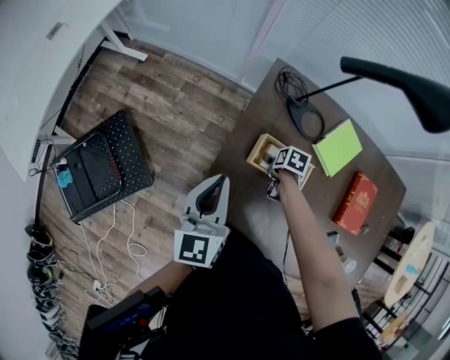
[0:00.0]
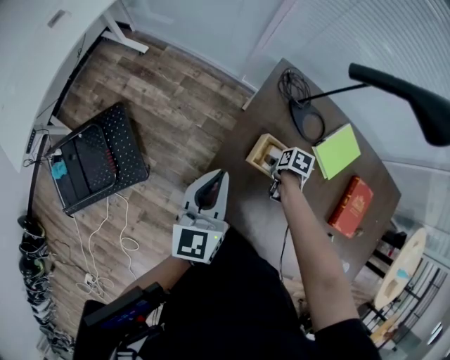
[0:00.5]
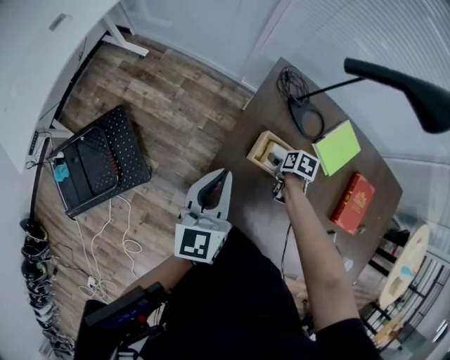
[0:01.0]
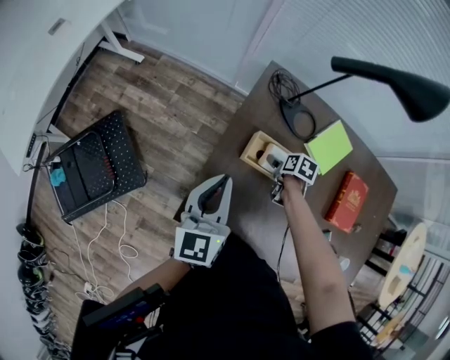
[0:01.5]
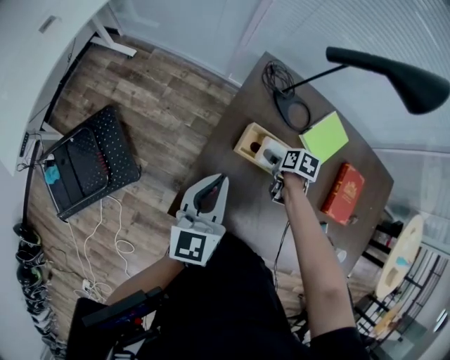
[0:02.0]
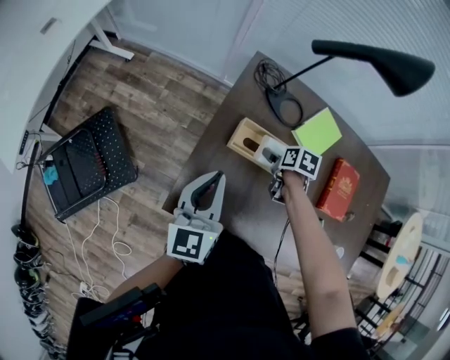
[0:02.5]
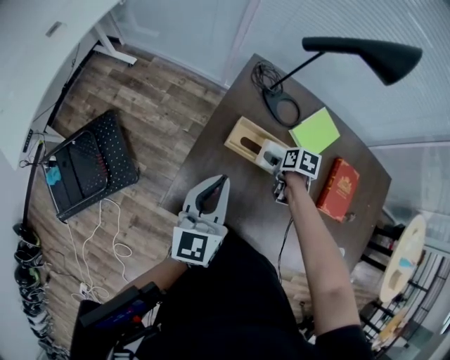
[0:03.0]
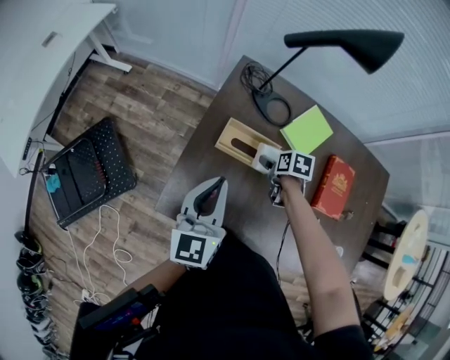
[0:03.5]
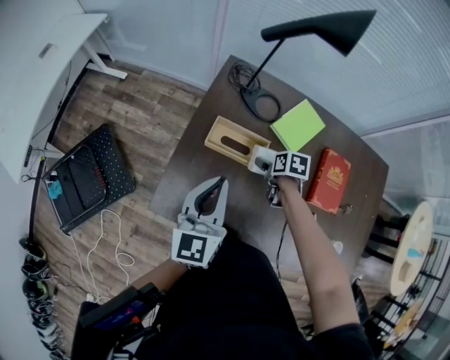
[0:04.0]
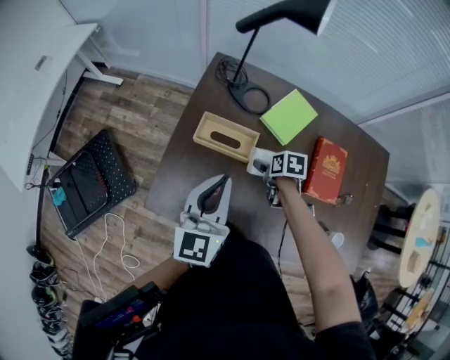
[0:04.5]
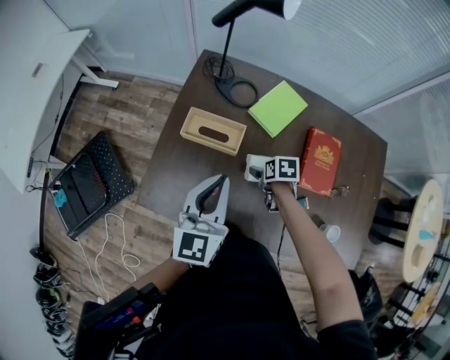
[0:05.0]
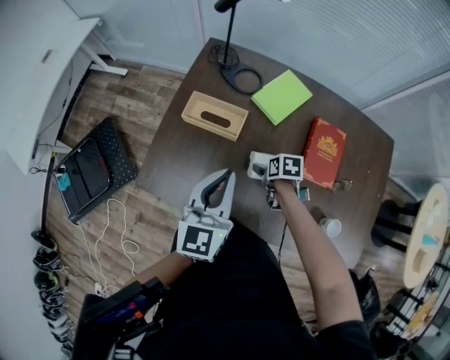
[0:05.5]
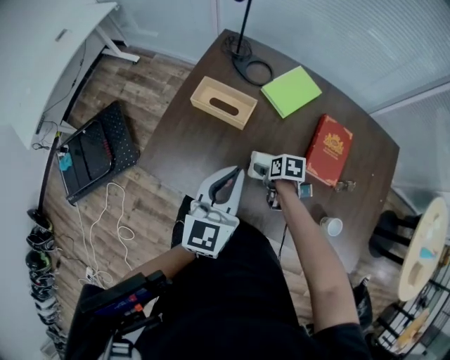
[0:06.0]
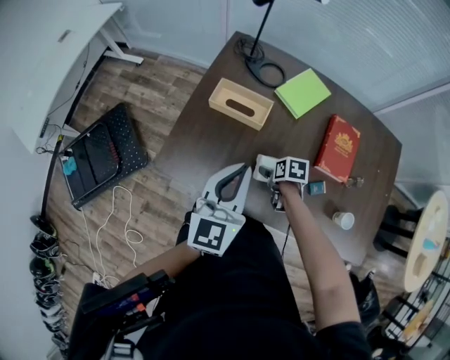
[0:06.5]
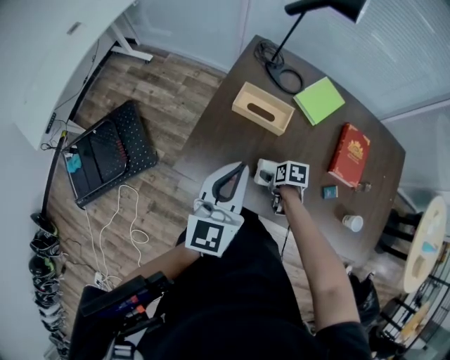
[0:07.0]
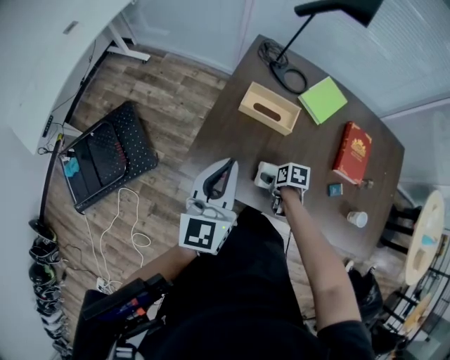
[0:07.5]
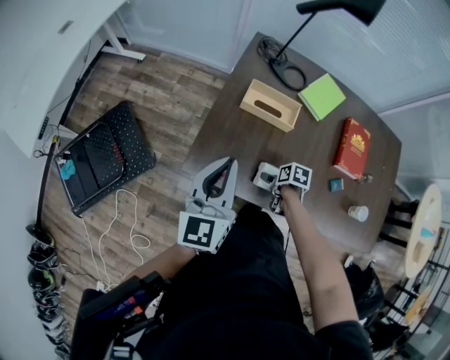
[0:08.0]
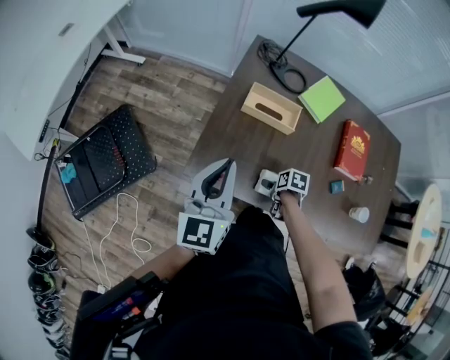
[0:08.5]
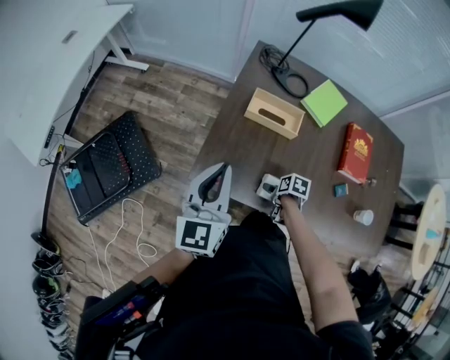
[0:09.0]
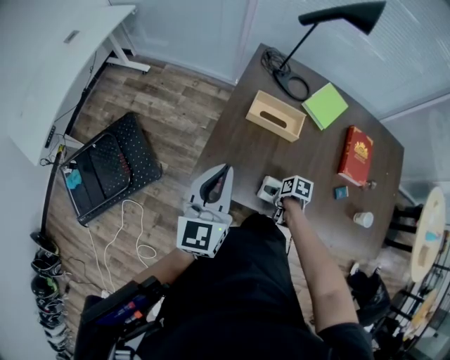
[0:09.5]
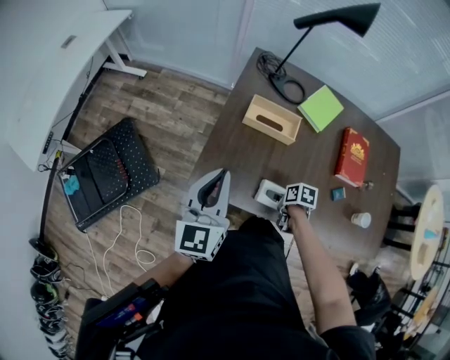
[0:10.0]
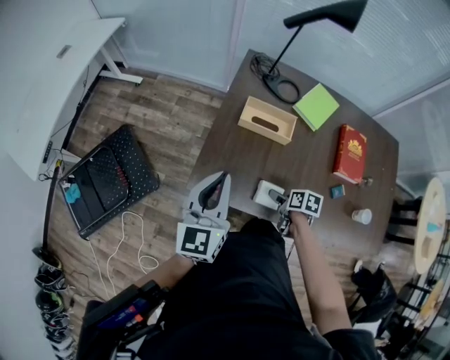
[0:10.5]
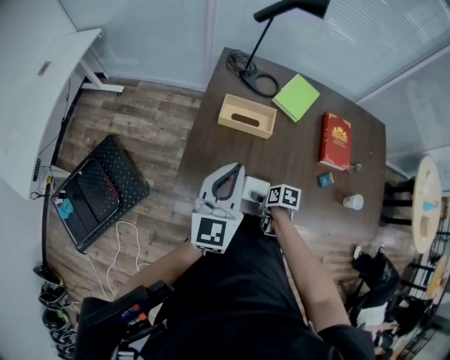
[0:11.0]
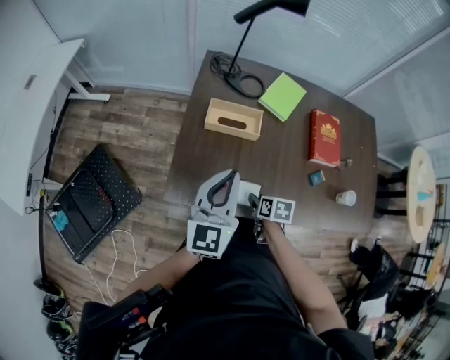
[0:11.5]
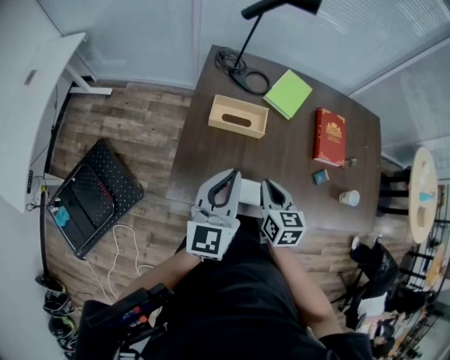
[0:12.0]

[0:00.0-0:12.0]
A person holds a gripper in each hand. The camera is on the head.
0:00.0 to 0:02.0: The right gripper moves upward, roughly 5 cm.
0:02.0 to 0:04.0: Both grippers travel together to the right and backward, about 10 cm.
0:04.0 to 0:06.0: The right gripper heads backward, covering about 15 cm, while the left gripper shifts approximately 20 cm backward and to the right.
0:06.0 to 0:08.0: Both grippers travel together to the left, about 20 cm.
0:08.0 to 0:10.0: The grippers move only a little.
0:10.0 to 0:12.0: The left gripper moves roughly 10 cm; the right gripper heads upward, covering about 20 cm, points its fingers some 40 degrees further upward, and closes its fingers.

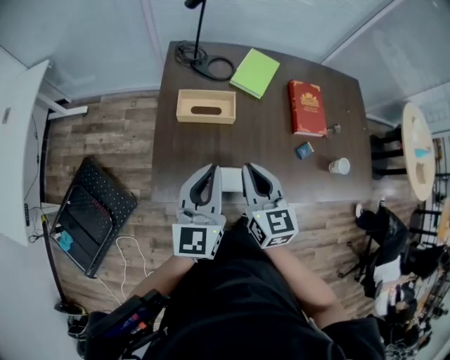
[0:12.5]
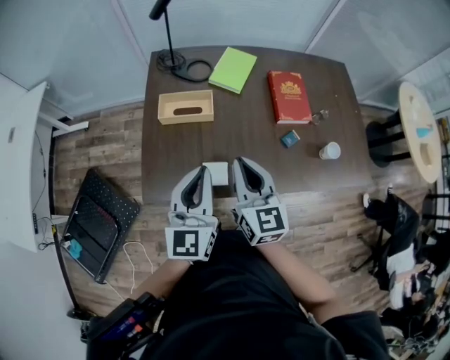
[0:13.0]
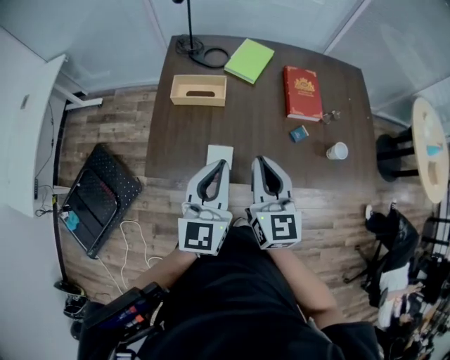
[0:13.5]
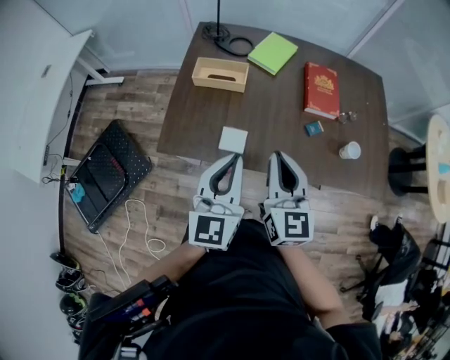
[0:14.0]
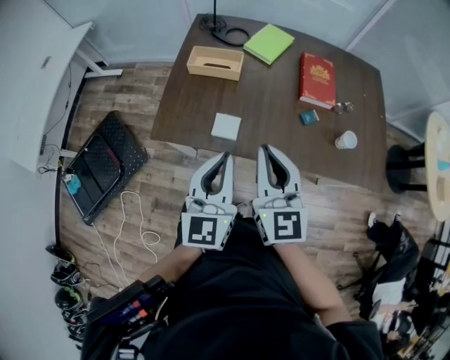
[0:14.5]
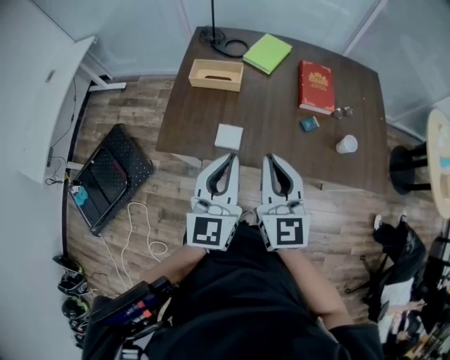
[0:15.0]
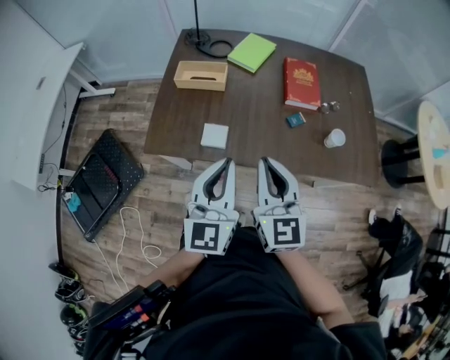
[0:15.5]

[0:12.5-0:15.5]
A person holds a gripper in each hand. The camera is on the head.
0:12.5 to 0:14.0: The left gripper shifts some 15 cm backward and to the right; the right gripper goes about 15 cm backward, to the right and upward.
0:14.0 to 0:15.5: The left gripper shifts by some 5 cm. Meanwhile the right gripper travels backward by roughly 5 cm.

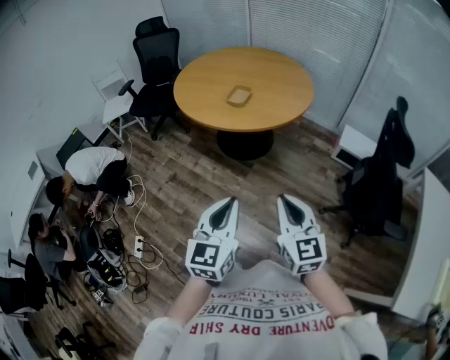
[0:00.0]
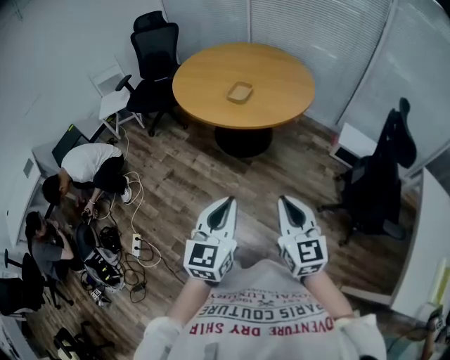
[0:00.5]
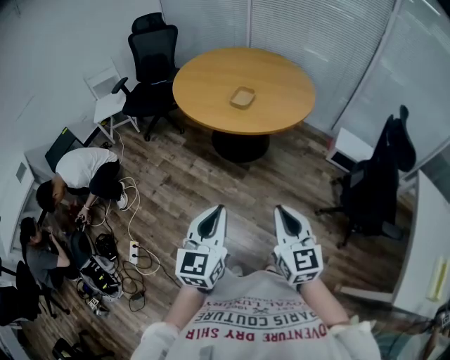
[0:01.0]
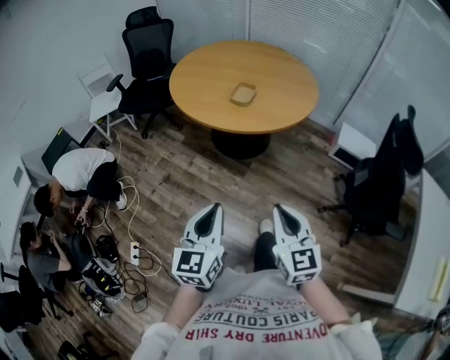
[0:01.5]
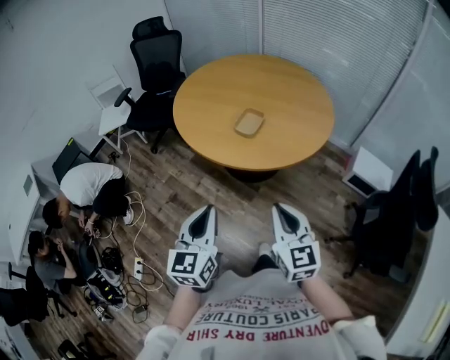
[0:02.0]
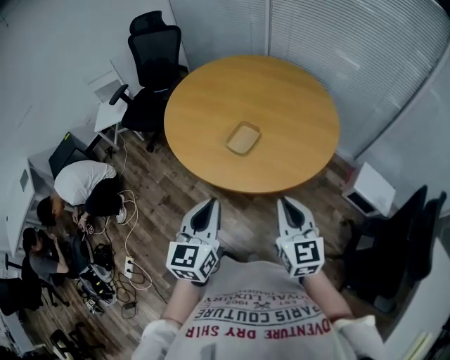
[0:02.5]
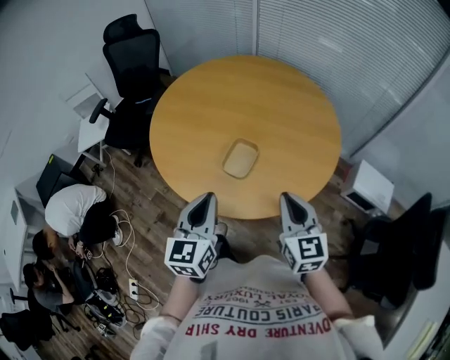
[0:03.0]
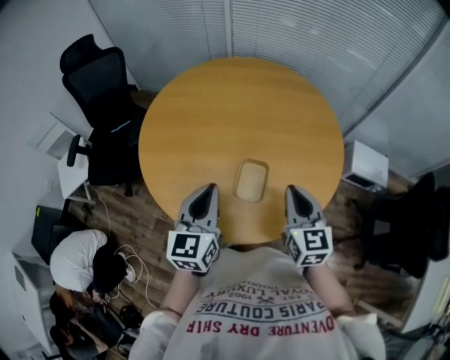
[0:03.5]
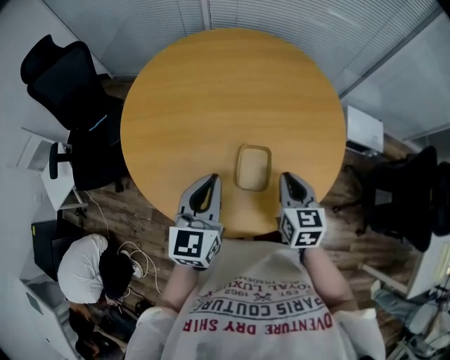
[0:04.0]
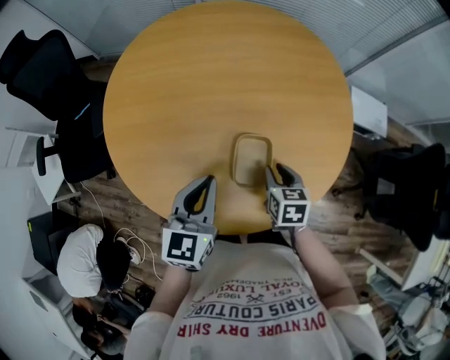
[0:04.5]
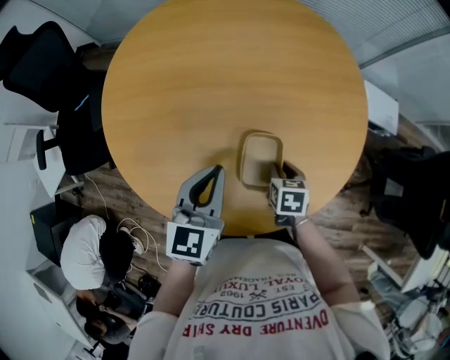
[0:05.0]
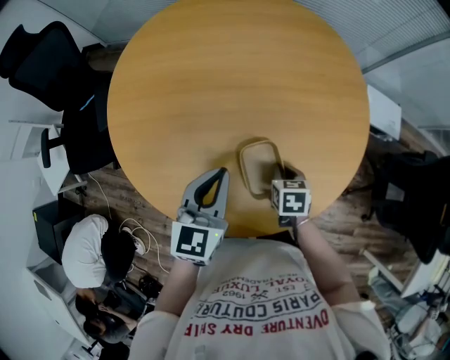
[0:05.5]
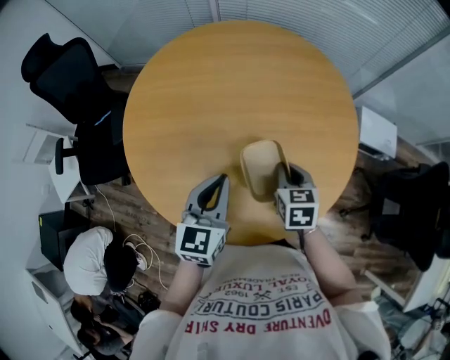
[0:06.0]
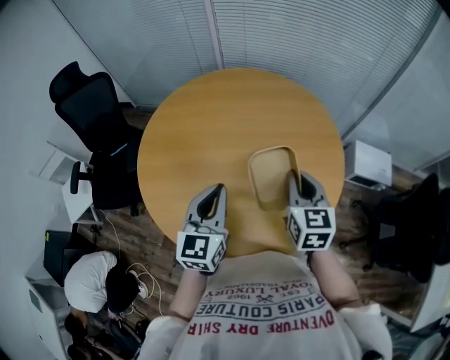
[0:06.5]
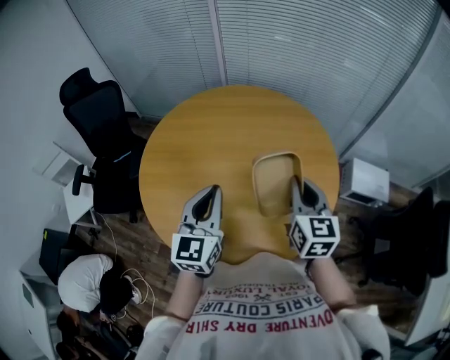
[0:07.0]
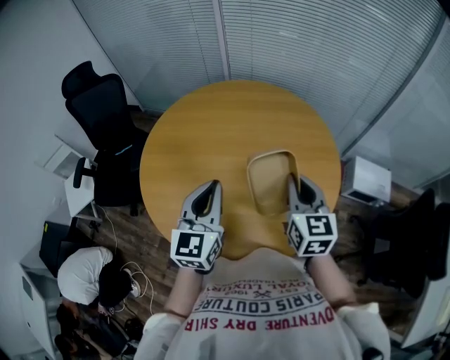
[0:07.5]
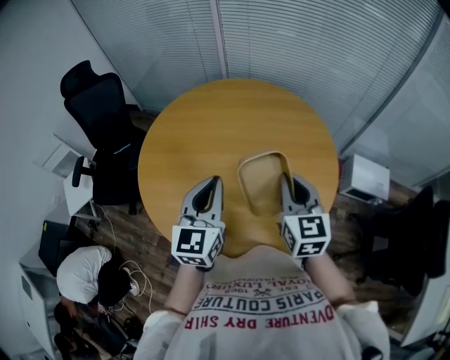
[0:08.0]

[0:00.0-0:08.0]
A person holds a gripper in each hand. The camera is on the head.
0:00.0 to 0:02.0: The right gripper heads forward, covering some 20 cm, while the left gripper moves forward and to the left, roughly 20 cm.
0:02.0 to 0:04.0: The left gripper changes place by about 40 cm, and changes its angle by about 30 degrees. Meanwhile the right gripper moves roughly 40 cm, and changes its angle by some 40 degrees.
0:04.0 to 0:06.0: The left gripper shifts by about 5 cm. The right gripper shifts some 5 cm forward, moves about 20 cm downward and comes back, and opens, then closes again.
0:06.0 to 0:08.0: The left gripper moves upward, approximately 10 cm. The right gripper moves upward, some 20 cm, and tips its fingers upward by roughly 30 degrees.

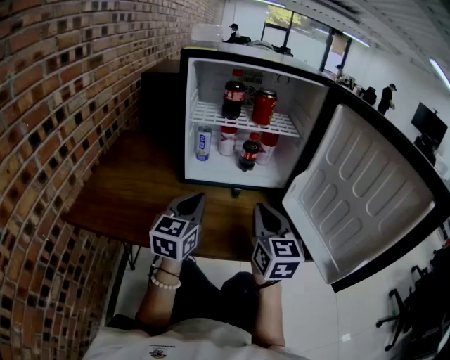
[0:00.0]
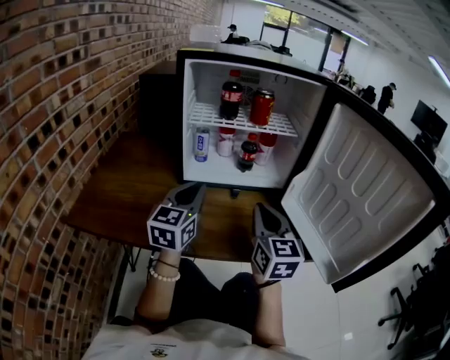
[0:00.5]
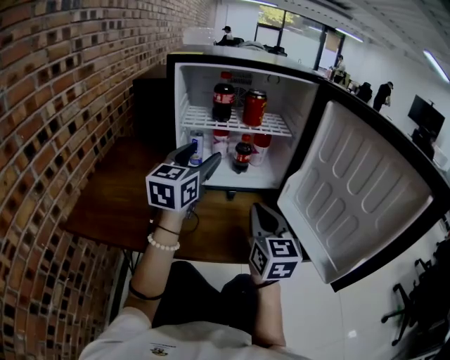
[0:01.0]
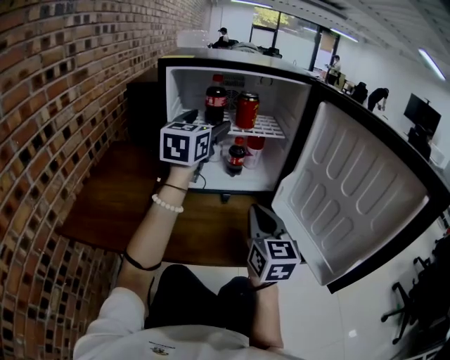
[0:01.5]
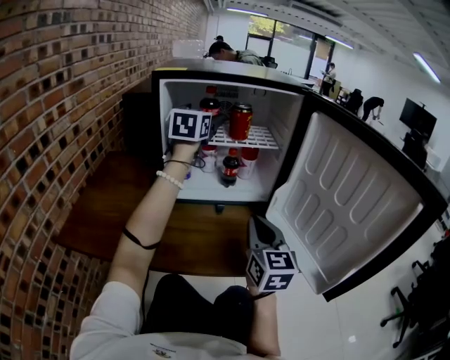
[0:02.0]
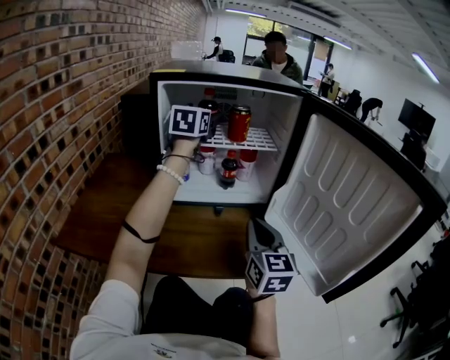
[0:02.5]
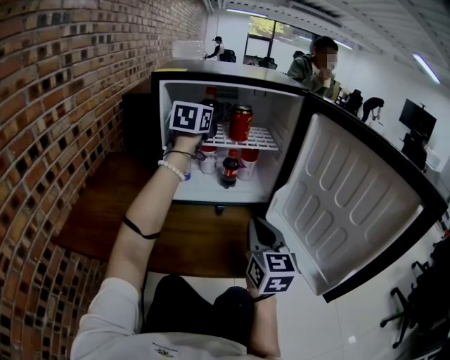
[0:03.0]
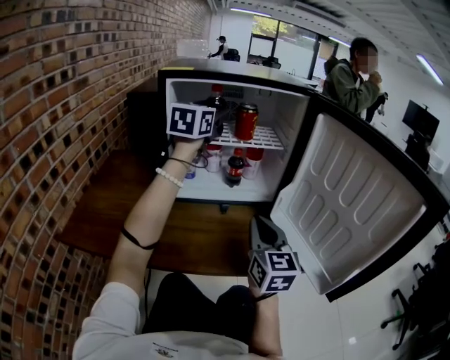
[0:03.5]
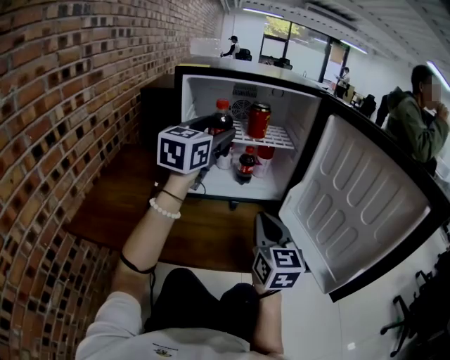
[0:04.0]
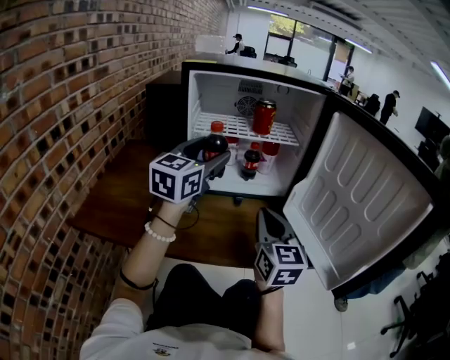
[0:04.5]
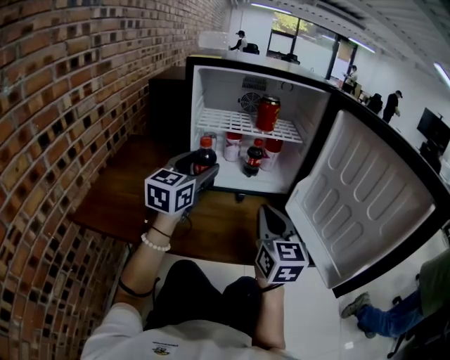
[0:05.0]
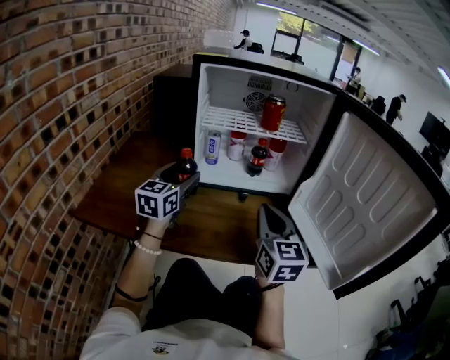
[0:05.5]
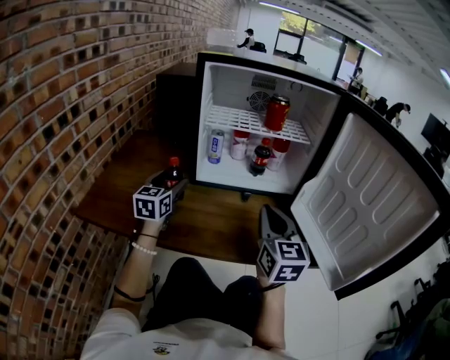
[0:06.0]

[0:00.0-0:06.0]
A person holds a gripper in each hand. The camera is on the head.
0:00.0 to 0:02.0: The left gripper goes roughly 30 cm forward and upward, and opens.
0:02.0 to 0:04.0: The left gripper moves backward, some 10 cm, and closes its fingers.
0:04.0 to 0:06.0: The left gripper moves downward and to the left, about 30 cm, and turns by approximately 20 degrees.
